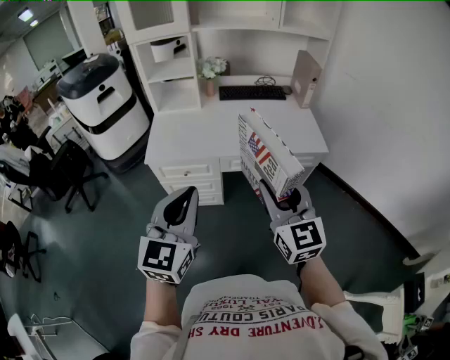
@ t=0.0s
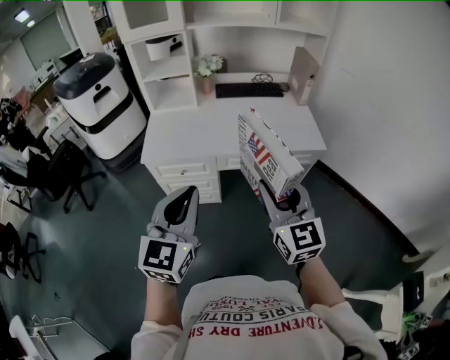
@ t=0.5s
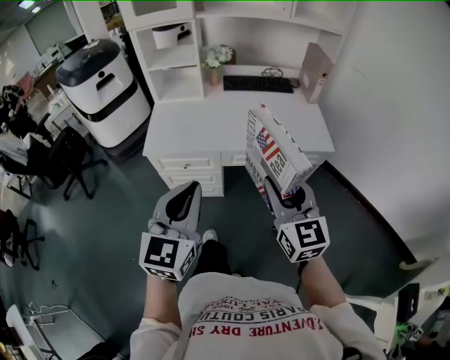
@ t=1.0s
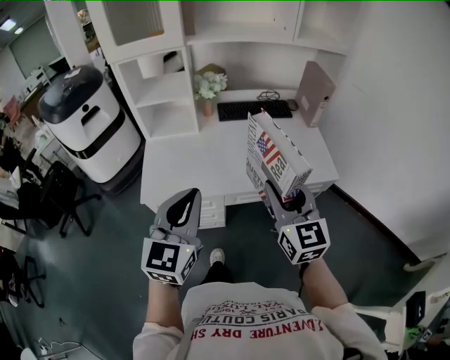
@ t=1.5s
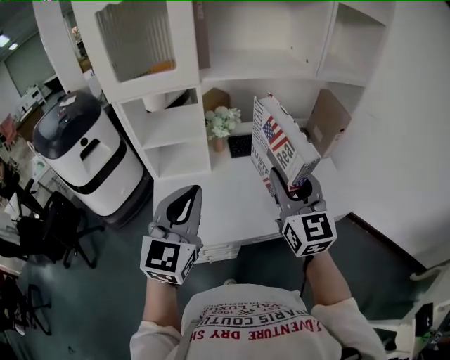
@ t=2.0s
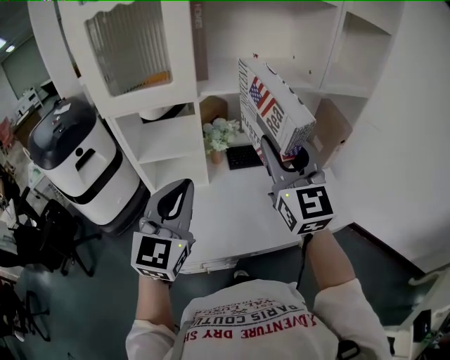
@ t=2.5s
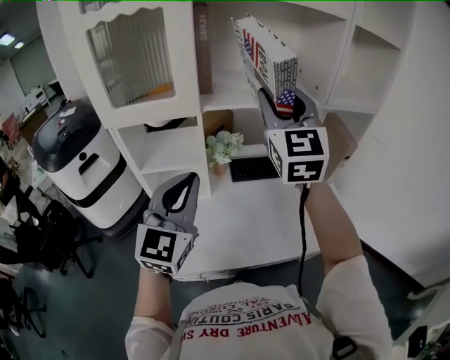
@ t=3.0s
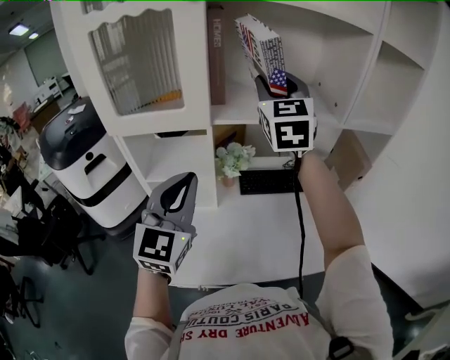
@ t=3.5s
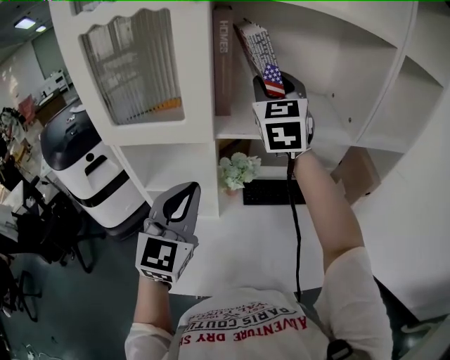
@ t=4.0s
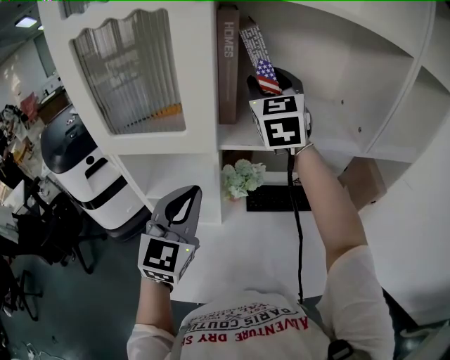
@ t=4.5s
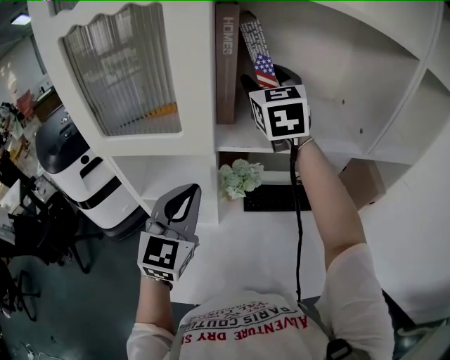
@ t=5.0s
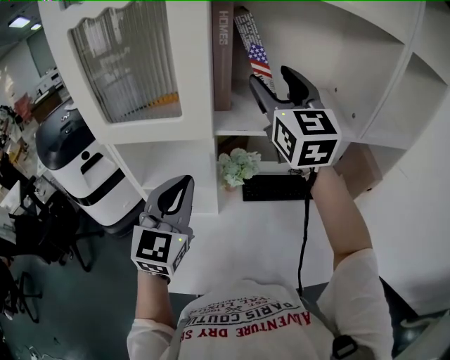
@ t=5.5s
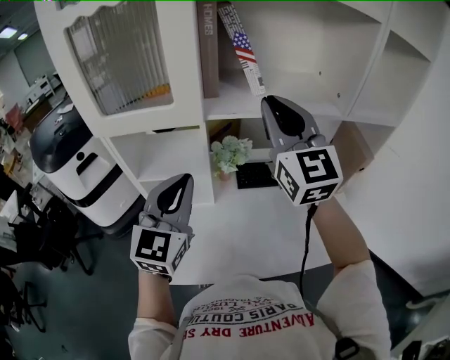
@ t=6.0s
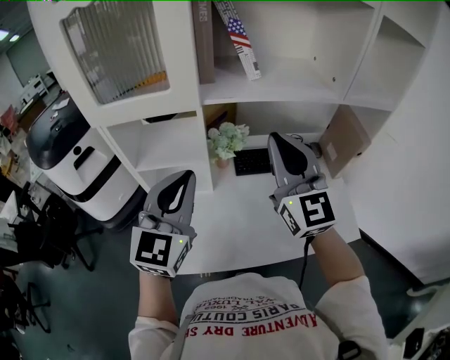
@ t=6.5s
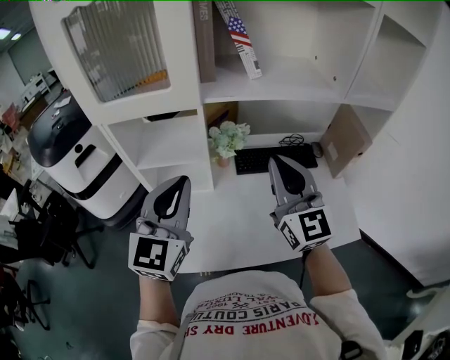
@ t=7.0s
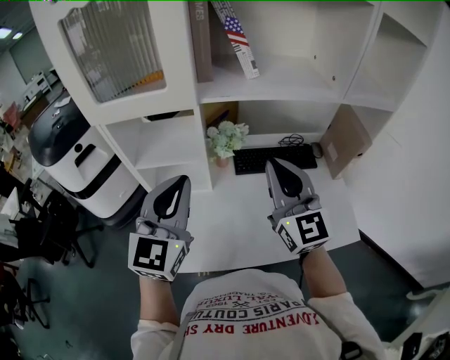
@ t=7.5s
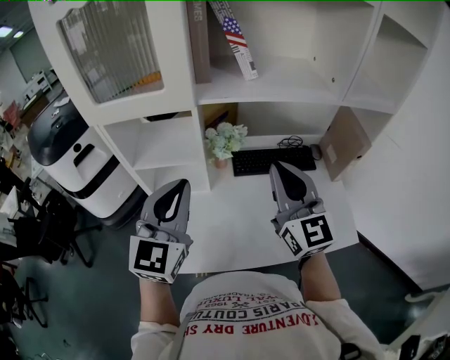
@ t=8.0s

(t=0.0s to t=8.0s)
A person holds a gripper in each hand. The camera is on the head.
t=0.0s - t=2.0s: The grippers both shift forward by approximately 40 cm.
t=2.0s - t=4.0s: The right gripper heads forward and upward, covering approximately 40 cm. The left gripper moves forward, approximately 20 cm.
t=4.0s - t=6.0s: The right gripper shifts some 15 cm backward, and closes its fingers.
t=6.0s - t=8.0s: The right gripper is displaced downward and backward by about 15 cm.

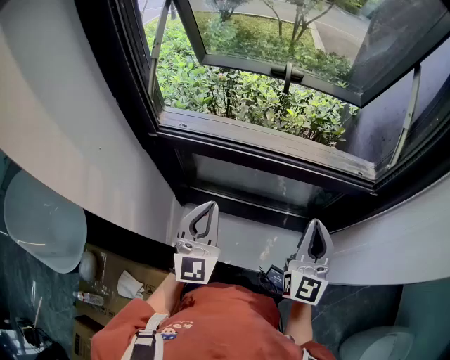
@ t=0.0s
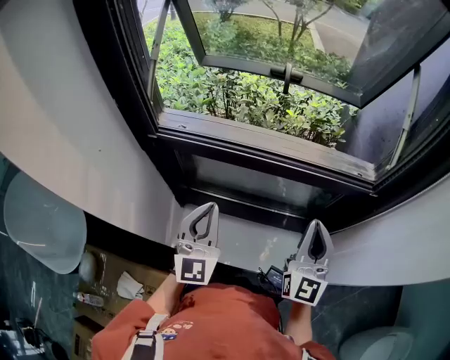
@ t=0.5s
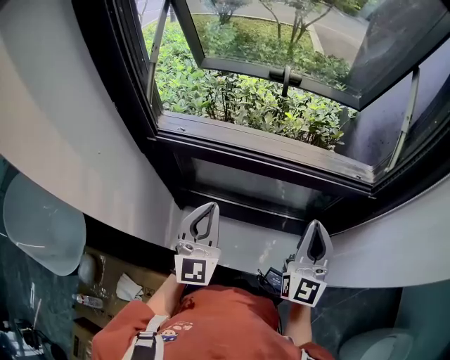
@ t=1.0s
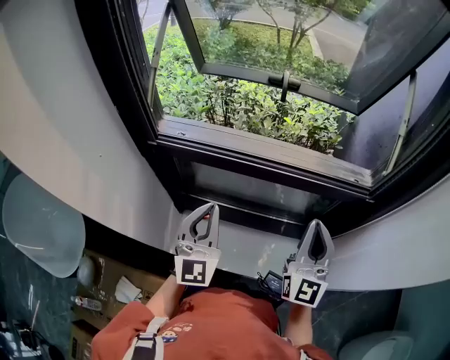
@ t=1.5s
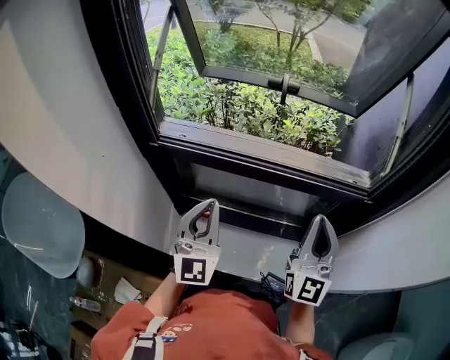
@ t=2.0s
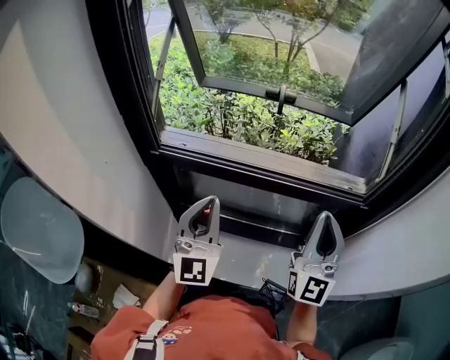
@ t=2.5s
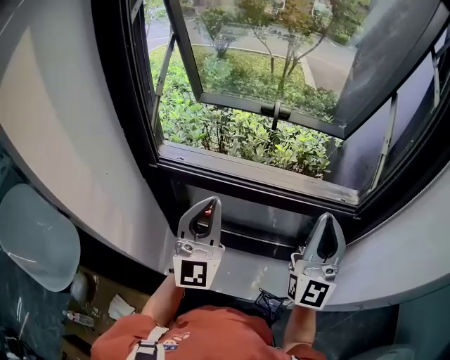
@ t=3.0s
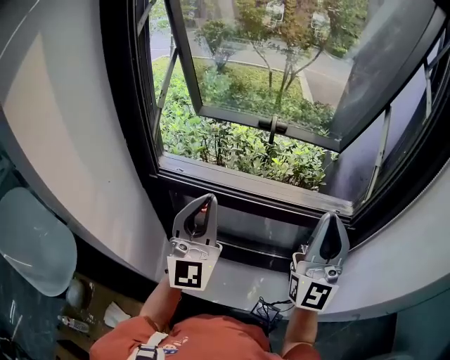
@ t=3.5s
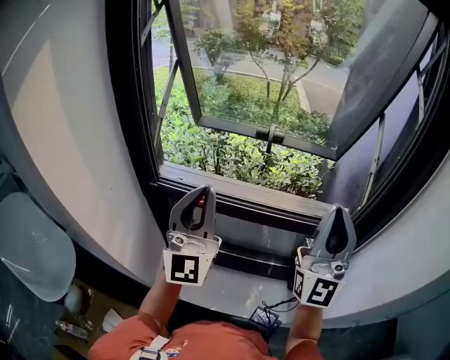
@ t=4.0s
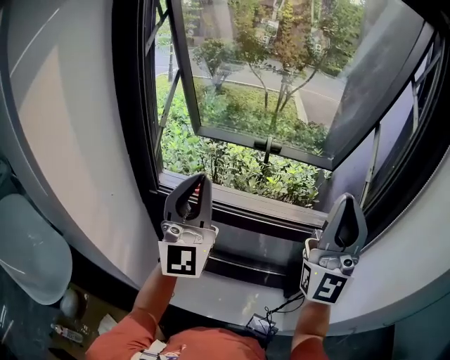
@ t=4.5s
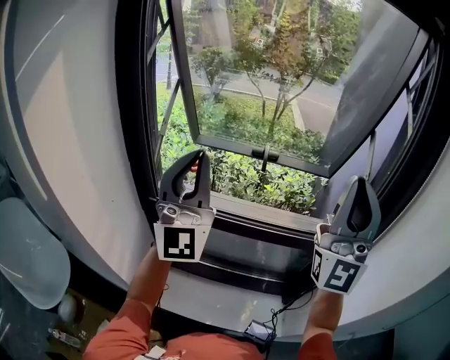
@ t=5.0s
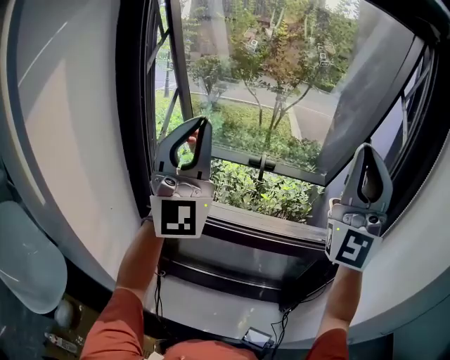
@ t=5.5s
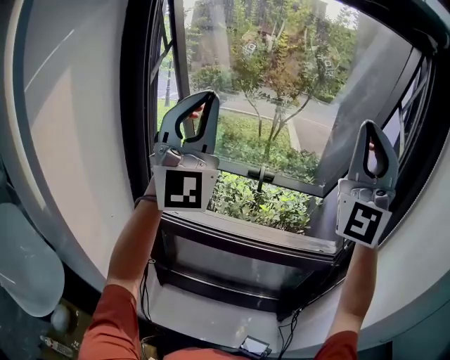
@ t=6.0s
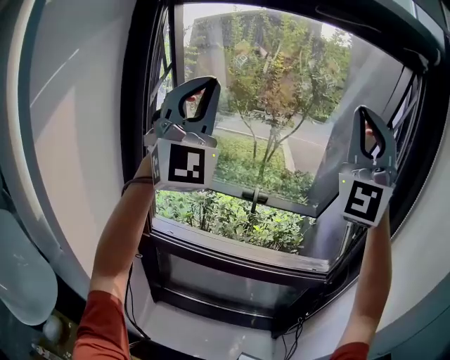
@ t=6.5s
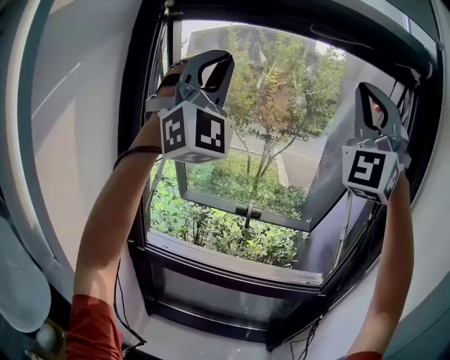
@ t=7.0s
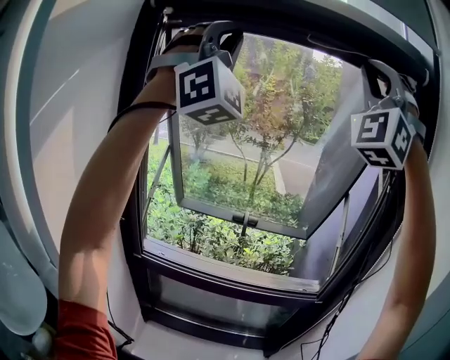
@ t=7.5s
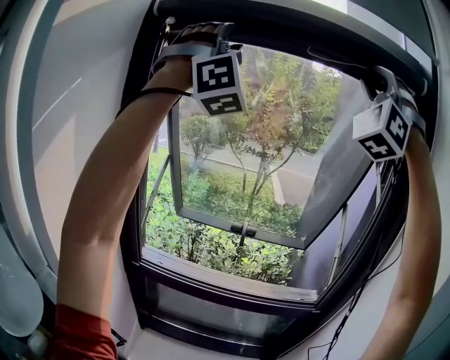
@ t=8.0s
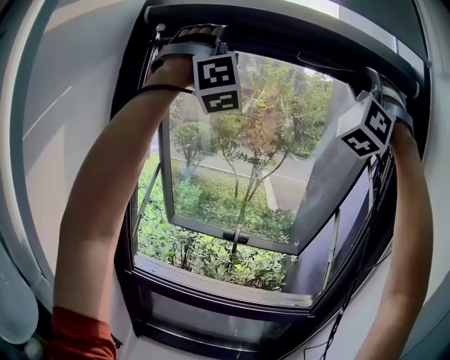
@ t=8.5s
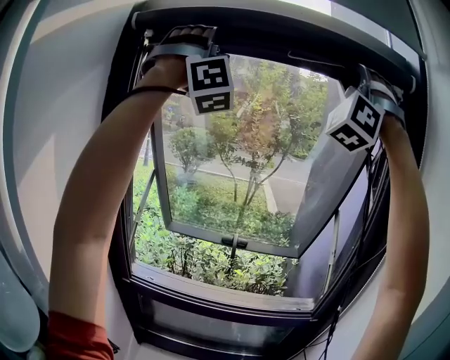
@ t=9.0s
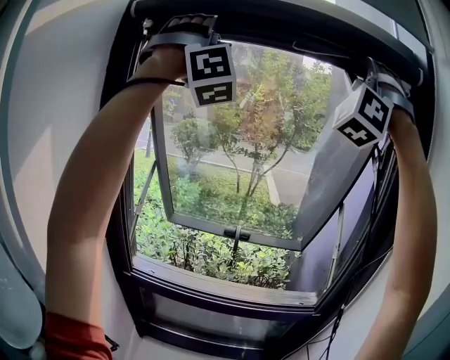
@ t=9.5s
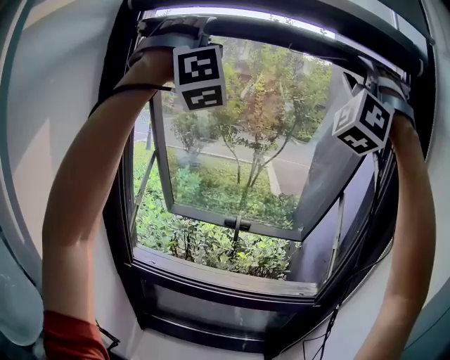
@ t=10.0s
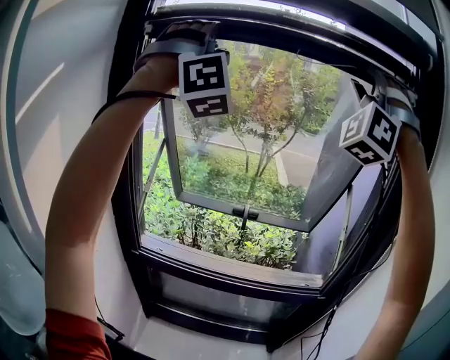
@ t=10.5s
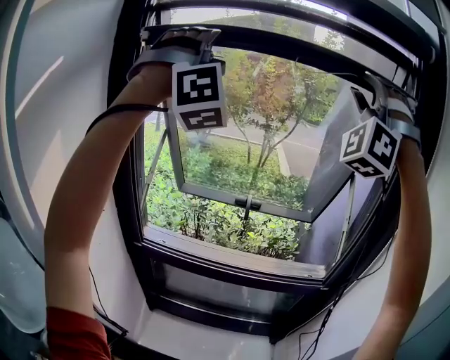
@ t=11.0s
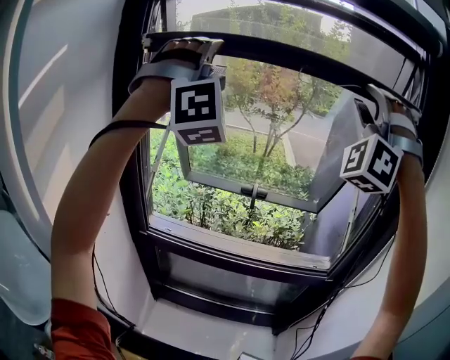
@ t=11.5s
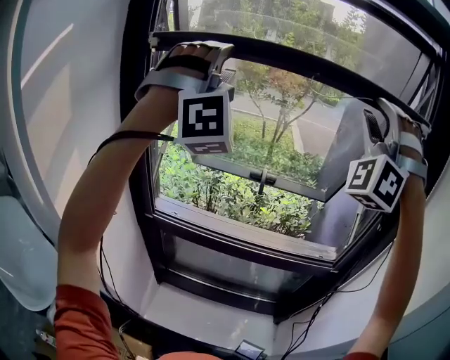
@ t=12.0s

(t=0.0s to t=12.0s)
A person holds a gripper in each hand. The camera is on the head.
t=0.0s - t=2.0s: The right gripper travels upward by approximately 5 cm.
t=2.0s - t=4.0s: Both grippers move upward, roughly 15 cm. The right gripper changes its angle by some 30 degrees; the left gripper turns by some 20 degrees.
t=4.0s - t=6.0s: The grippers both shift upward by about 25 cm. The left gripper rotates approximately 30 degrees. The right gripper rotates about 30 degrees.
t=6.0s - t=8.0s: Both grippers travel together upward, roughly 25 cm. The right gripper rotates around the line of its fingers by approximately 40 degrees, counterclockwise from behind, and opens up. The left gripper rotates around the line of its fingers by about 50 degrees, clockwise from behind, and opens up.
t=8.0s - t=10.0s: There are only small adjustments of the grippers.
t=10.0s - t=12.0s: Both grippers travel together downward, roughly 20 cm.

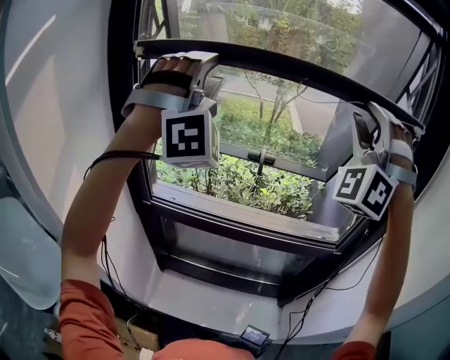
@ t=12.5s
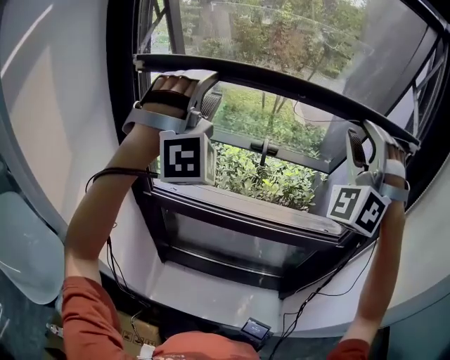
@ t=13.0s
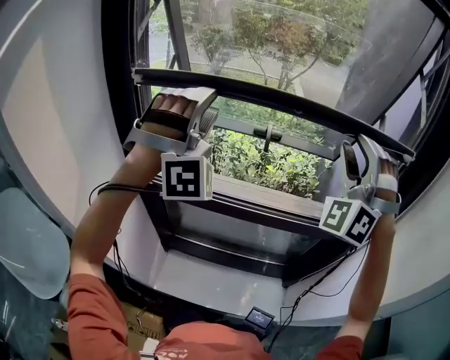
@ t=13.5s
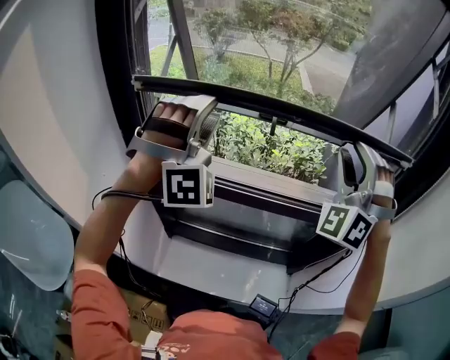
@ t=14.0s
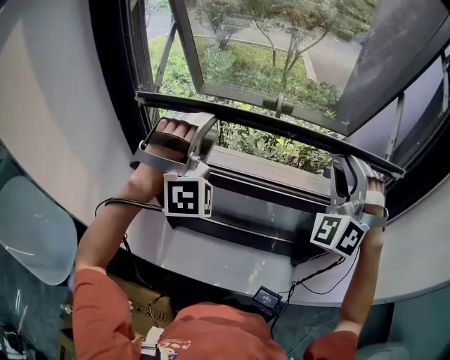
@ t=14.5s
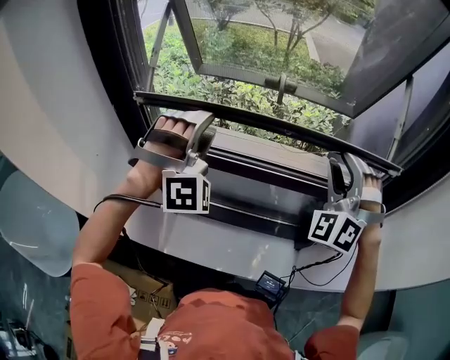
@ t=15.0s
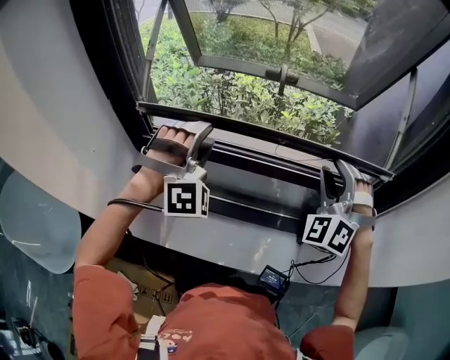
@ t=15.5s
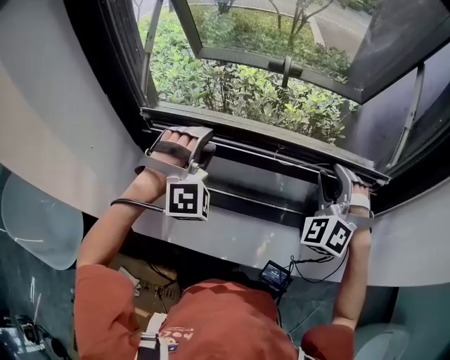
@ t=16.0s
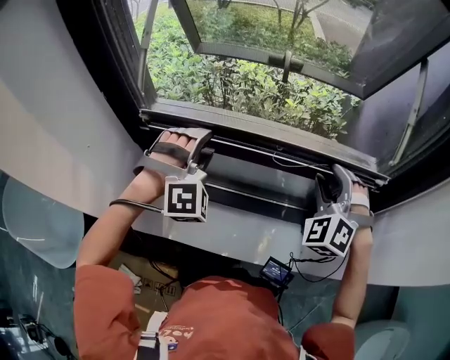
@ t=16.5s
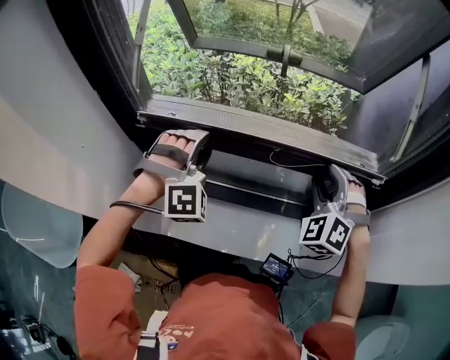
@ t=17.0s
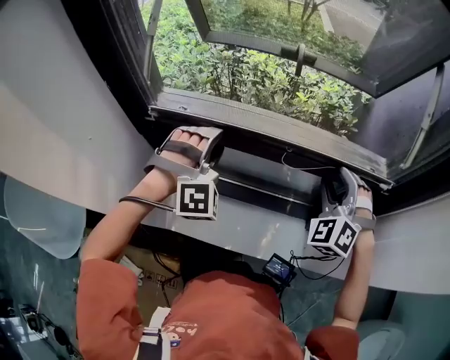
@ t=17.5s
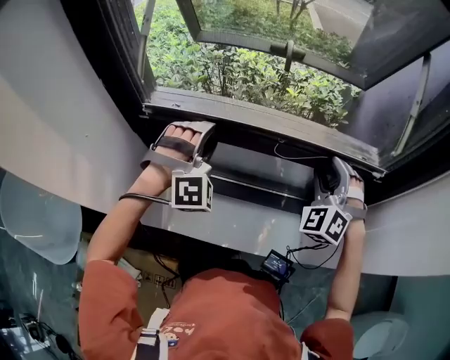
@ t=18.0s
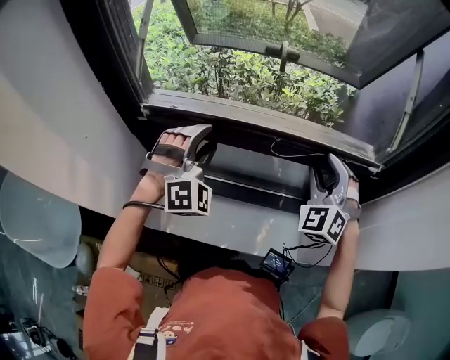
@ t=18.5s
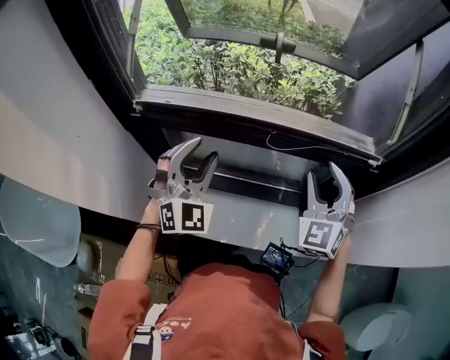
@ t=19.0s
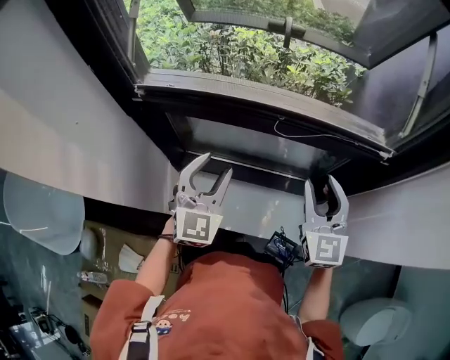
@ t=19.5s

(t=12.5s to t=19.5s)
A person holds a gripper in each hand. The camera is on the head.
t=12.5s - t=14.5s: The two grippers go roughly 25 cm downward. The right gripper changes its angle by some 20 degrees. Meanwhile the left gripper changes its angle by about 20 degrees.
t=14.5s - t=16.0s: Both grippers travel together downward, approximately 15 cm.
t=16.0s - t=17.5s: There are only small adjustments of the grippers.
t=17.5s - t=19.5s: Both grippers move backward, approximately 10 cm. The left gripper twists about 60 degrees counterclockwise, seen from behind. The right gripper twists approximately 50 degrees clockwise, seen from behind.
